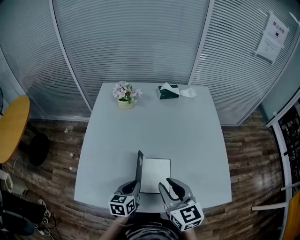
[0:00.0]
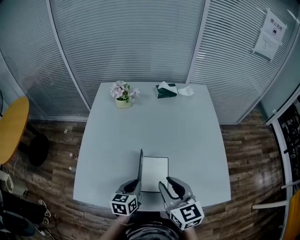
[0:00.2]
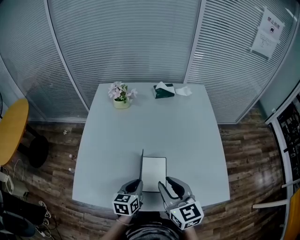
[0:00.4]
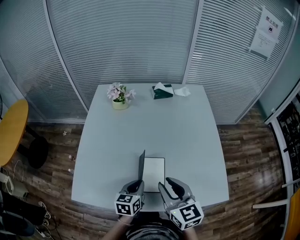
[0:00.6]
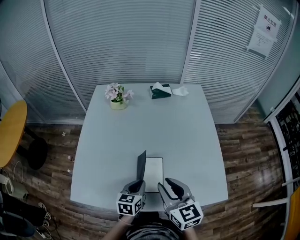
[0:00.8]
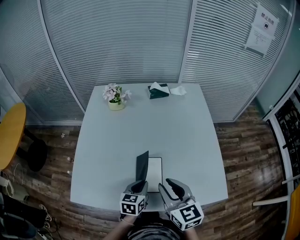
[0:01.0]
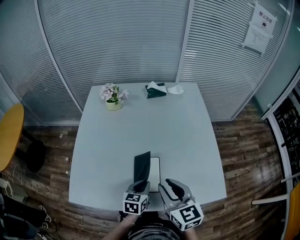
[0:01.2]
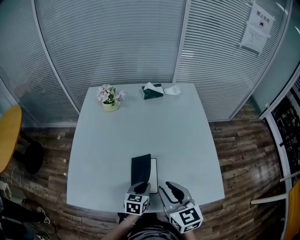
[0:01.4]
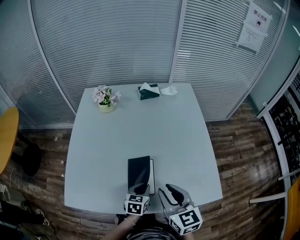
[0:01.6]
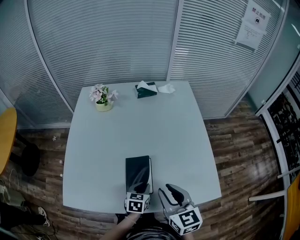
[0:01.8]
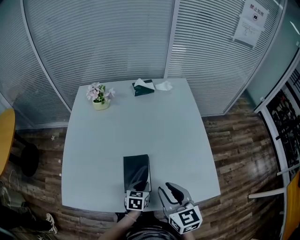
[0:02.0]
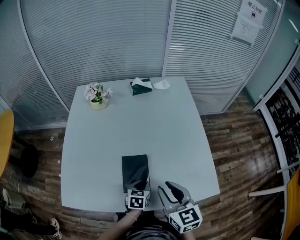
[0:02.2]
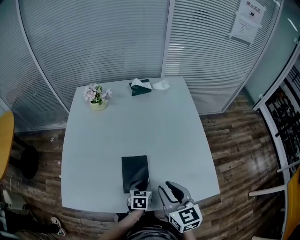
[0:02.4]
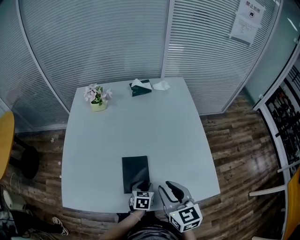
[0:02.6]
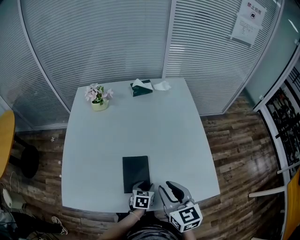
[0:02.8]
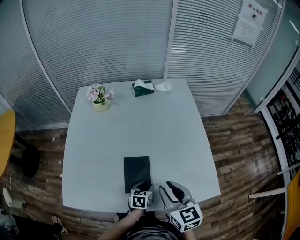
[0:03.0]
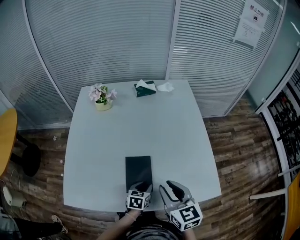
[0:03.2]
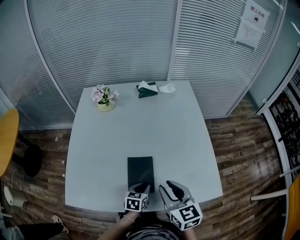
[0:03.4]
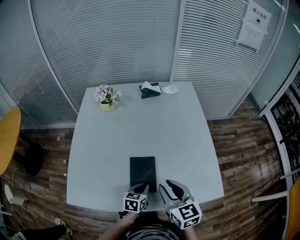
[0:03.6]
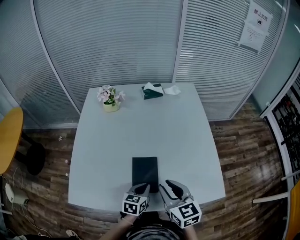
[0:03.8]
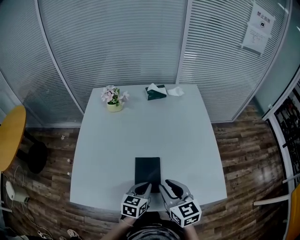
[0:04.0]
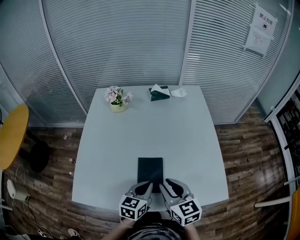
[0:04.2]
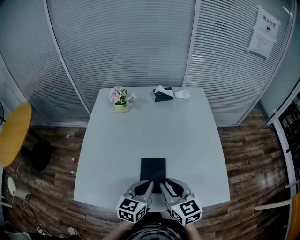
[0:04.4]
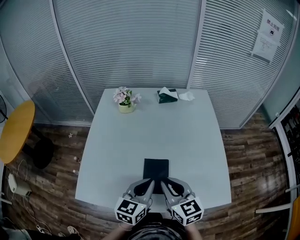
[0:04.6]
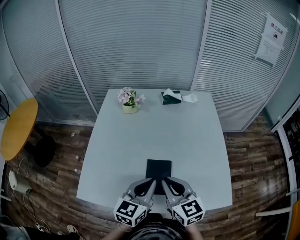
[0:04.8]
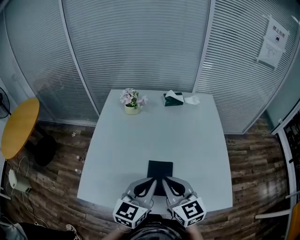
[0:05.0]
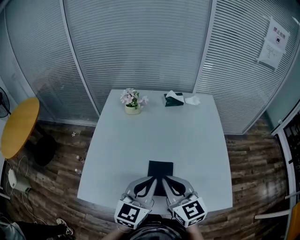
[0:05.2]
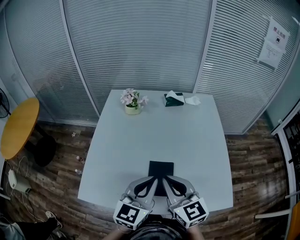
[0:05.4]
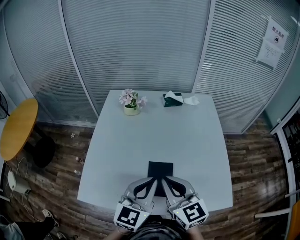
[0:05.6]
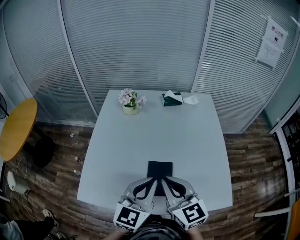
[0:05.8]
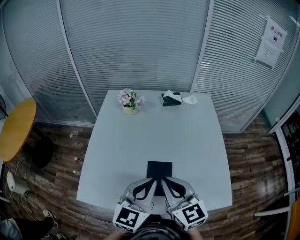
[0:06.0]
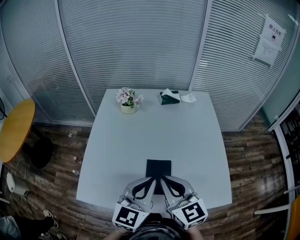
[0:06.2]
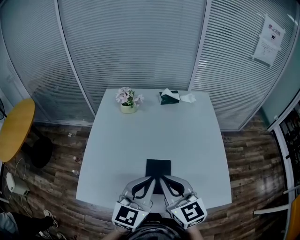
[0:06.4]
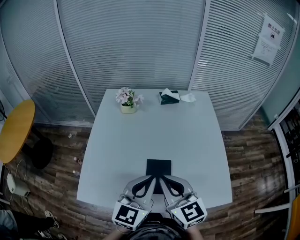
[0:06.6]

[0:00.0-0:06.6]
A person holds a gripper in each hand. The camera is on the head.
0:00.0 to 0:01.6: The right gripper shifts some 10 cm to the right; the left gripper heads to the right, covering about 15 cm.
0:03.2 to 0:05.0: The right gripper moves to the left and upward, some 10 cm, and closes up. The left gripper goes roughly 25 cm upward, points its fingers roughly 30 degrees further upward, and closes its fingers.
0:05.0 to 0:06.6: The grippers make only small movements.

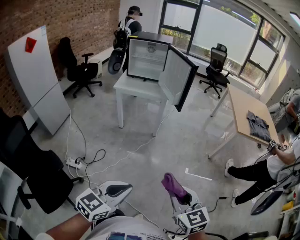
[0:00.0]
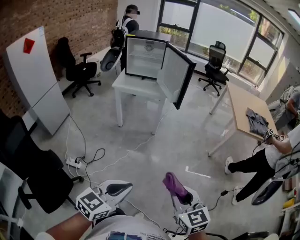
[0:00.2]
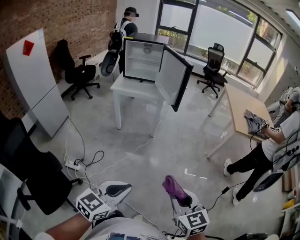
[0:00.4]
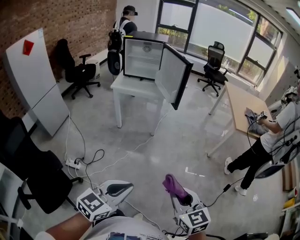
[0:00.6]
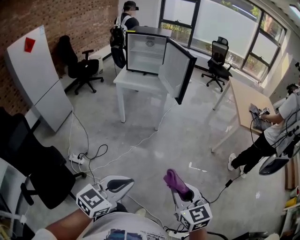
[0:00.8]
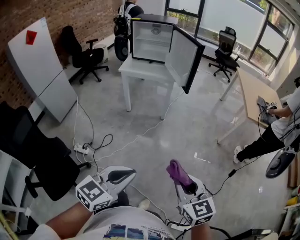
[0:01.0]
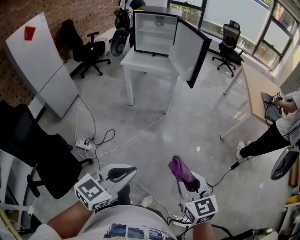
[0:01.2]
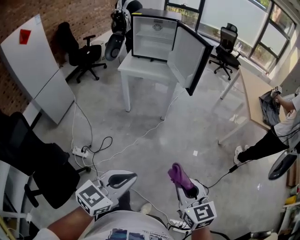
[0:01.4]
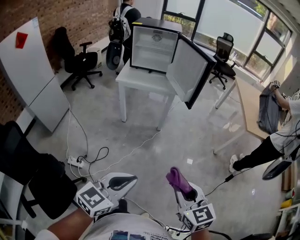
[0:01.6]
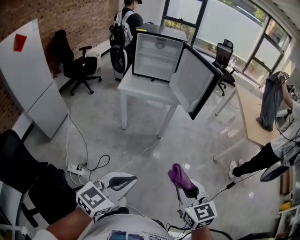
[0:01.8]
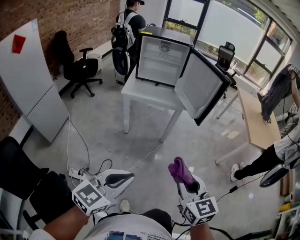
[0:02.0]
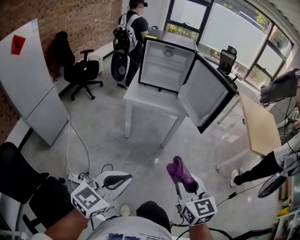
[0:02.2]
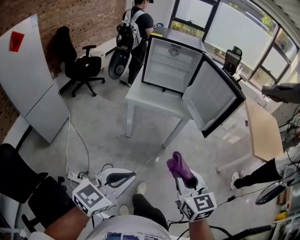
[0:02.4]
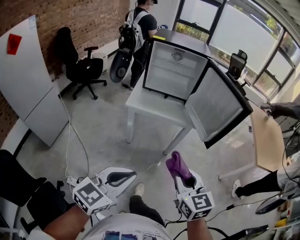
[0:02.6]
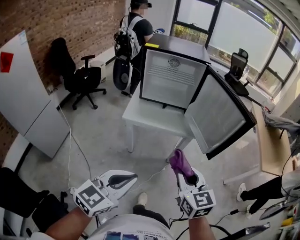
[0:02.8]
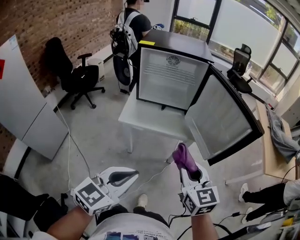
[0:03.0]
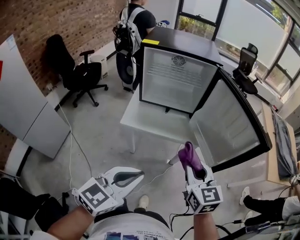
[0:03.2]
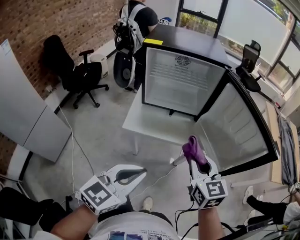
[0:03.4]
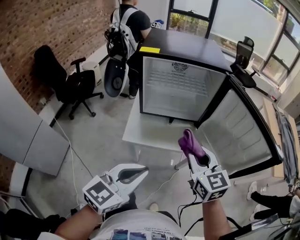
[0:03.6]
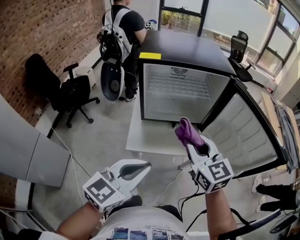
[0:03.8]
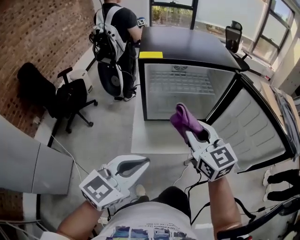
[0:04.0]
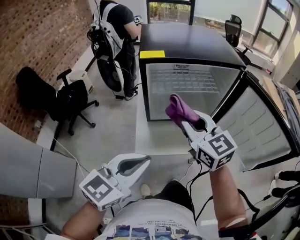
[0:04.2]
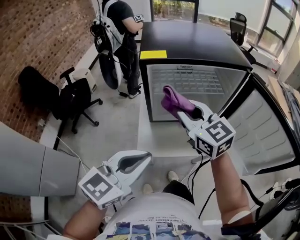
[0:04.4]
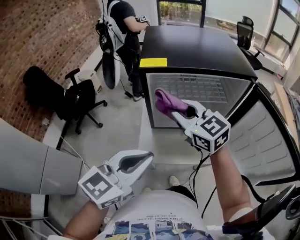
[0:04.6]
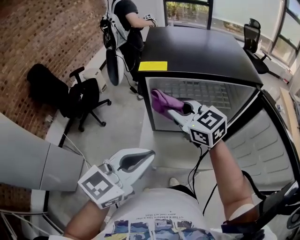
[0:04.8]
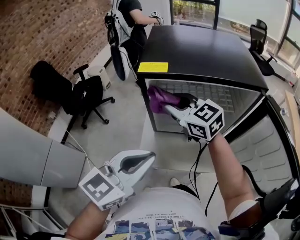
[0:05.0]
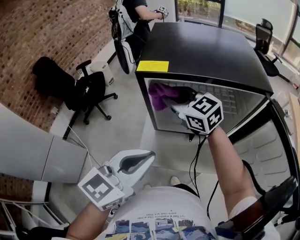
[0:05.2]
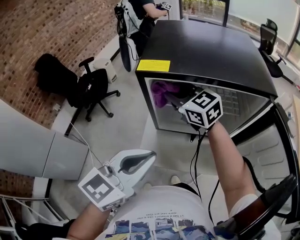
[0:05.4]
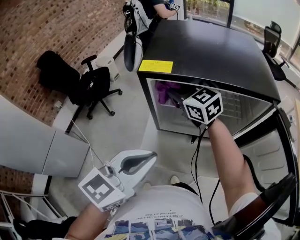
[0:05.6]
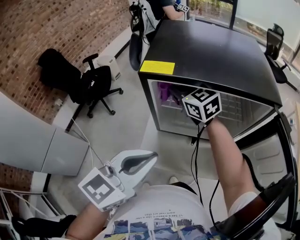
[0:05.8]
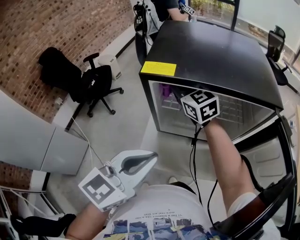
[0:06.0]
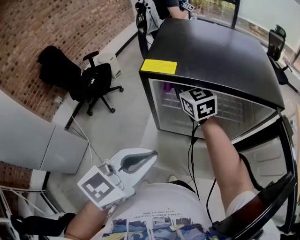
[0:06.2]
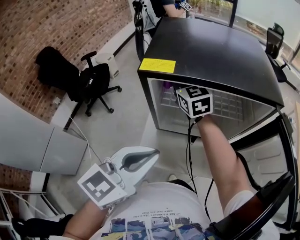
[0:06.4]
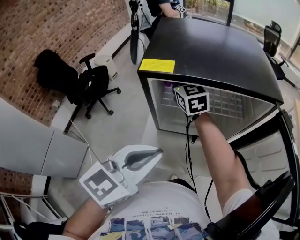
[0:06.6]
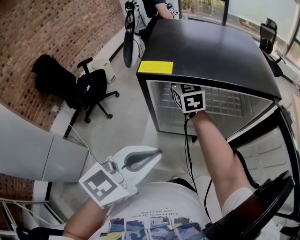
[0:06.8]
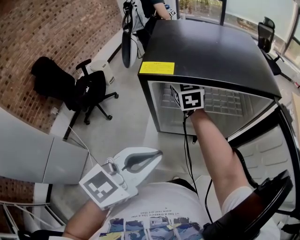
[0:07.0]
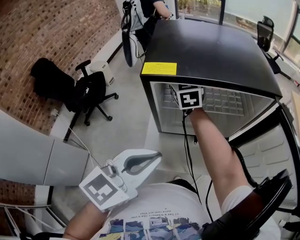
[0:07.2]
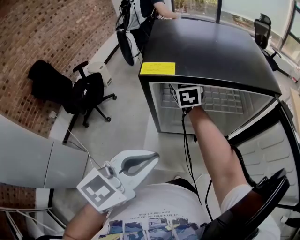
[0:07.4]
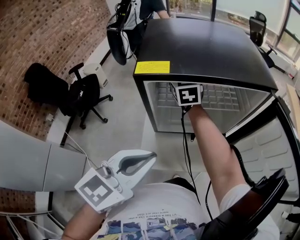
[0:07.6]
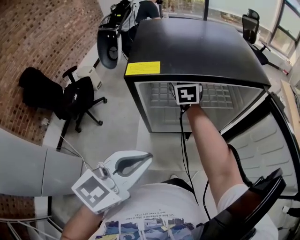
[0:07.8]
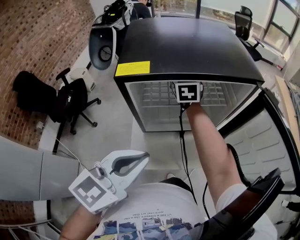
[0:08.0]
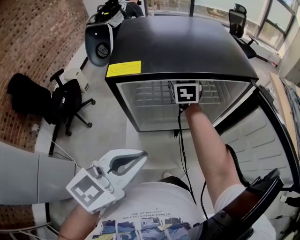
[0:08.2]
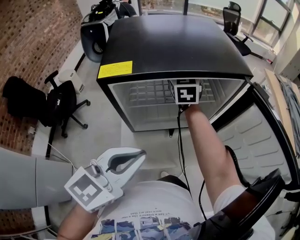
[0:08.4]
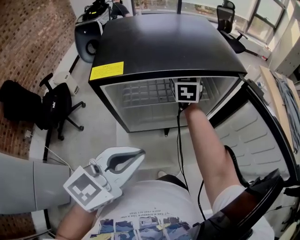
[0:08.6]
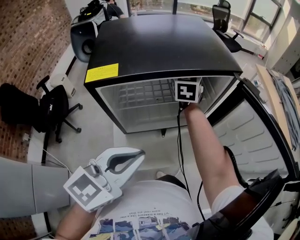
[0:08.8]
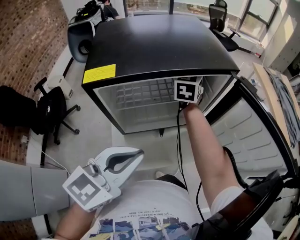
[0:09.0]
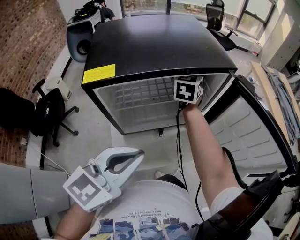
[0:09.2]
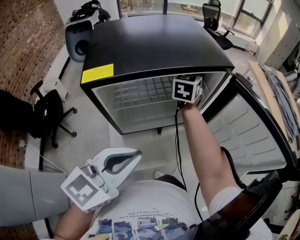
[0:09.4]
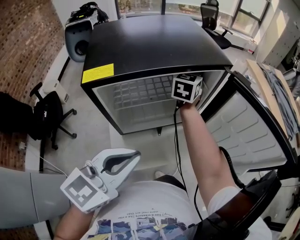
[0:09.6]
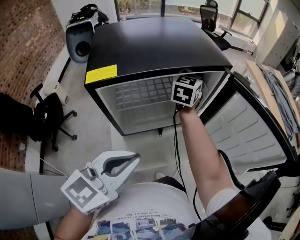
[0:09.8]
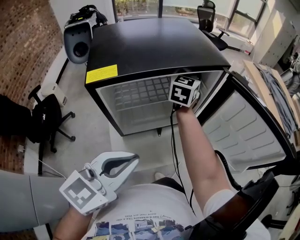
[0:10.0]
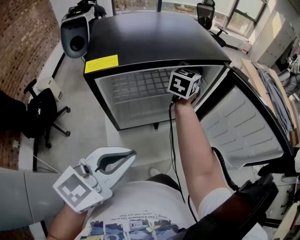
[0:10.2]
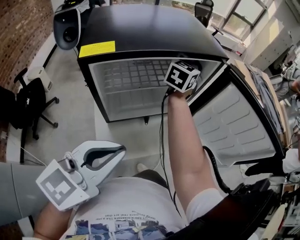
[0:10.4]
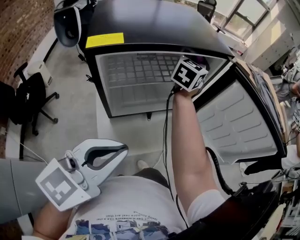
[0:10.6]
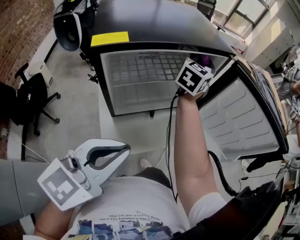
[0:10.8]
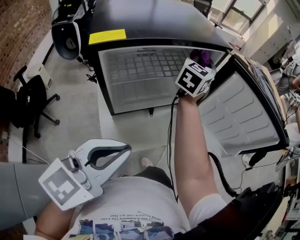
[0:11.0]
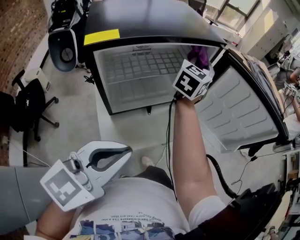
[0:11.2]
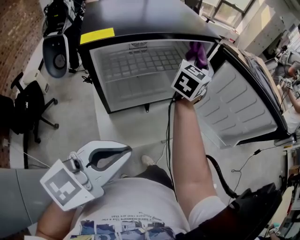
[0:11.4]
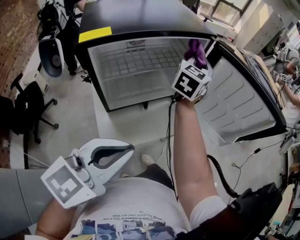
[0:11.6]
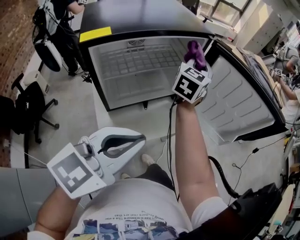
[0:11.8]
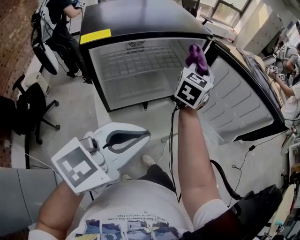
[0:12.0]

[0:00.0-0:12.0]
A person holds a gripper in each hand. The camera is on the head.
0:00.0 to 0:01.6: Both grippers travel together forward and to the left, roughly 10 cm.
0:01.6 to 0:03.0: Both grippers are carried forward and to the left, some 40 cm.
0:03.0 to 0:04.4: The grippers both shift forward and to the left by about 35 cm.
0:04.4 to 0:06.0: The left gripper travels forward by about 5 cm; the right gripper travels forward by about 20 cm.
0:06.0 to 0:07.6: The right gripper goes some 10 cm forward, and swivels approximately 30 degrees.
0:07.6 to 0:09.0: The right gripper shifts roughly 20 cm to the right, and swivels approximately 30 degrees, while the left gripper moves roughly 5 cm.
0:09.0 to 0:10.4: The left gripper moves some 5 cm. Meanwhile the right gripper moves to the right, roughly 5 cm, and swivels about 20 degrees.
0:10.4 to 0:12.0: The left gripper shifts about 5 cm to the right. The right gripper is displaced to the right and backward by approximately 15 cm.

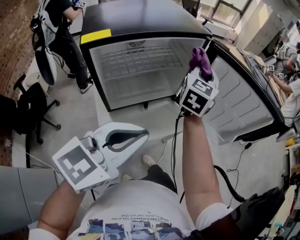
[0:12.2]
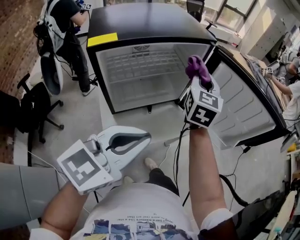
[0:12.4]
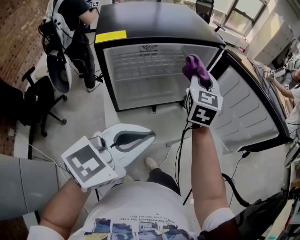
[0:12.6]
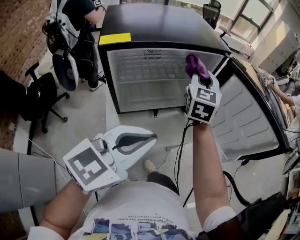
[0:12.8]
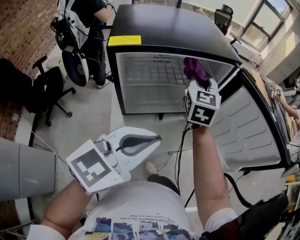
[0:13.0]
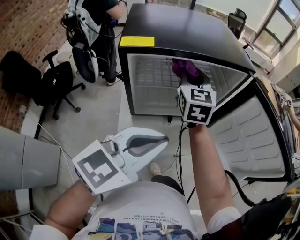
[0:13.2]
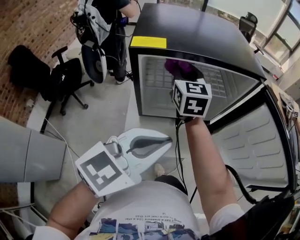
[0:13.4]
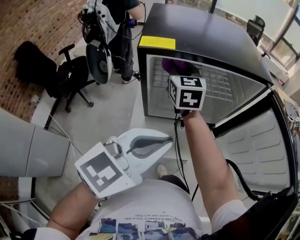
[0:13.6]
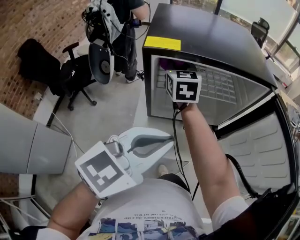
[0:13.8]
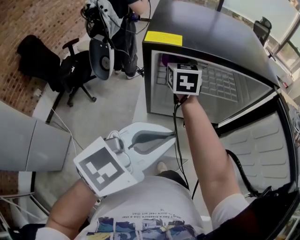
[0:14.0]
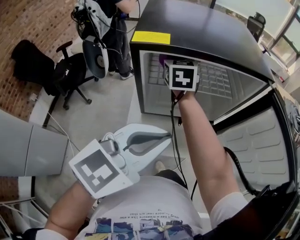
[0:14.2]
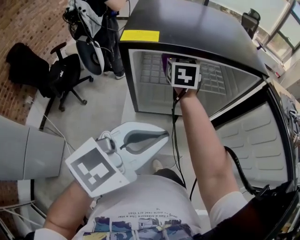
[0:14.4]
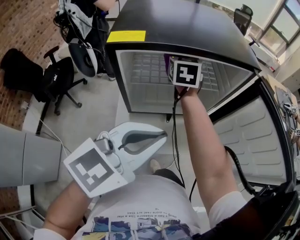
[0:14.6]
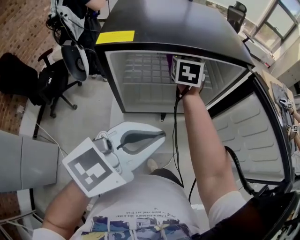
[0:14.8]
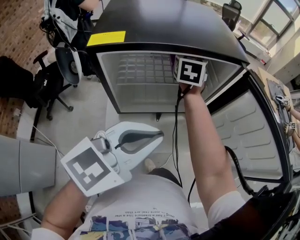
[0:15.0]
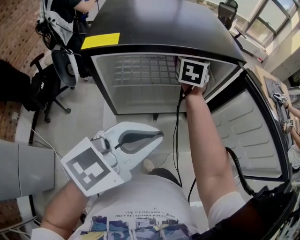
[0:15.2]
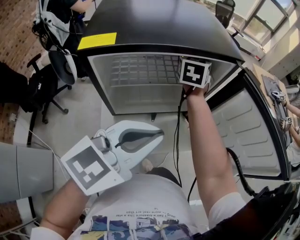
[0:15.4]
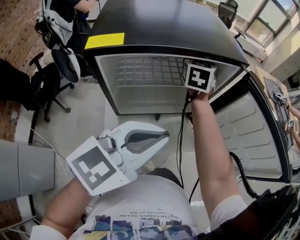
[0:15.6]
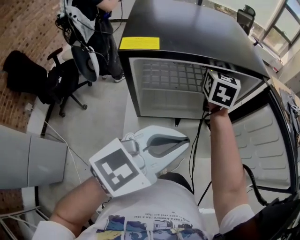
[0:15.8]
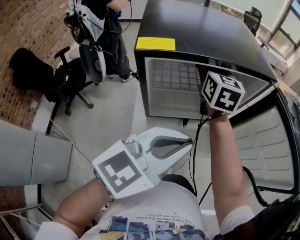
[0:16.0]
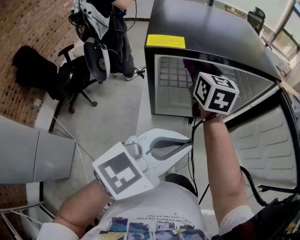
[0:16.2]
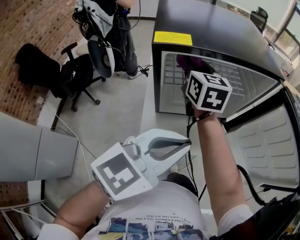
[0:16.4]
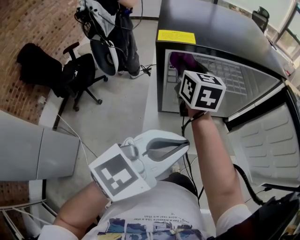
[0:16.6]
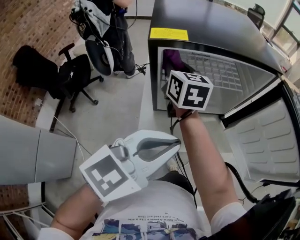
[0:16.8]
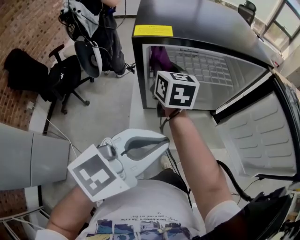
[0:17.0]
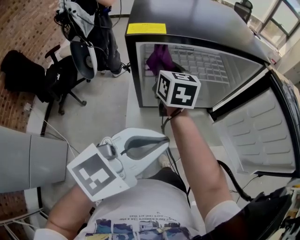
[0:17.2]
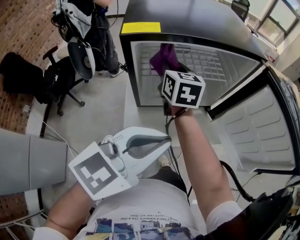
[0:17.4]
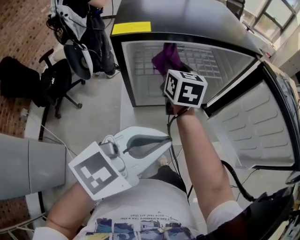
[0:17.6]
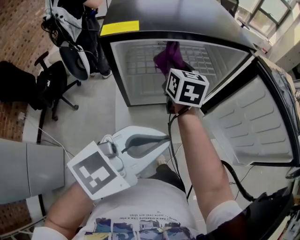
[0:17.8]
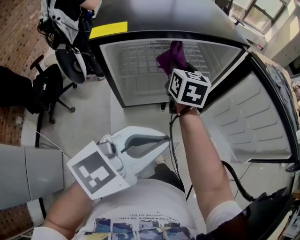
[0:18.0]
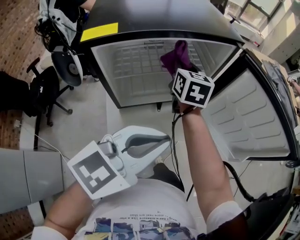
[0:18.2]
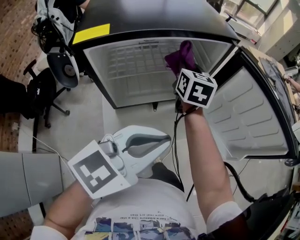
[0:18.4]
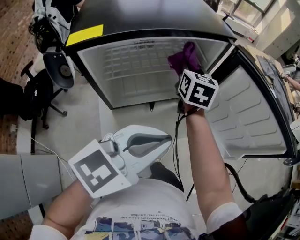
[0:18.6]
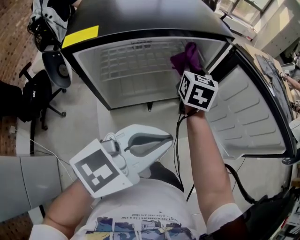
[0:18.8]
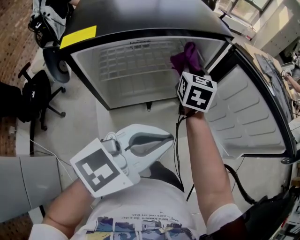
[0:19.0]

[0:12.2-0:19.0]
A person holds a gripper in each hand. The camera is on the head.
0:12.2 to 0:13.6: The left gripper shifts by some 5 cm, and changes its angle by some 20 degrees, while the right gripper moves some 30 cm, and changes its angle by approximately 50 degrees.
0:13.6 to 0:15.0: The right gripper heads to the right and forward, covering approximately 20 cm, and rotates about 30 degrees, while the left gripper is displaced to the right by about 5 cm.
0:15.0 to 0:16.2: The right gripper shifts some 10 cm backward, and rotates some 20 degrees.
0:16.2 to 0:17.6: The right gripper travels downward by approximately 5 cm, and goes to the left and returns, some 10 cm each way.
0:17.6 to 0:19.0: The left gripper moves approximately 5 cm. Meanwhile the right gripper shifts some 20 cm to the right and forward, and rotates roughly 20 degrees.
